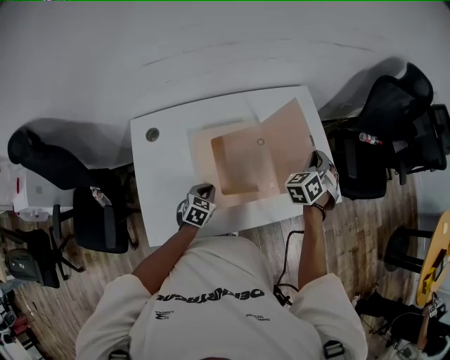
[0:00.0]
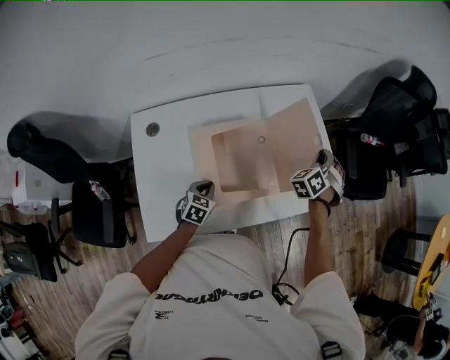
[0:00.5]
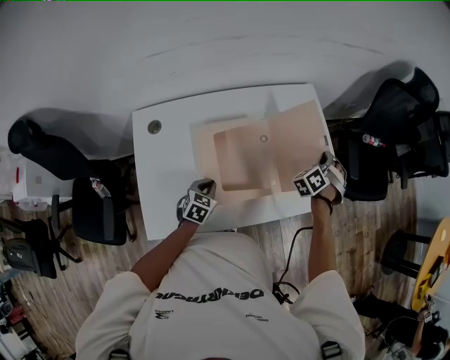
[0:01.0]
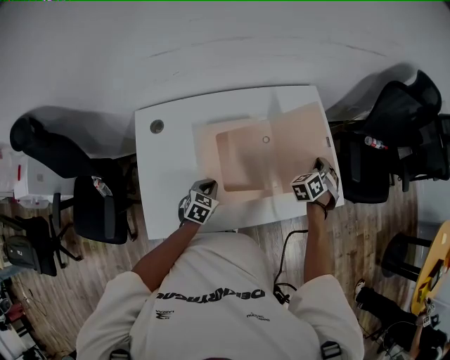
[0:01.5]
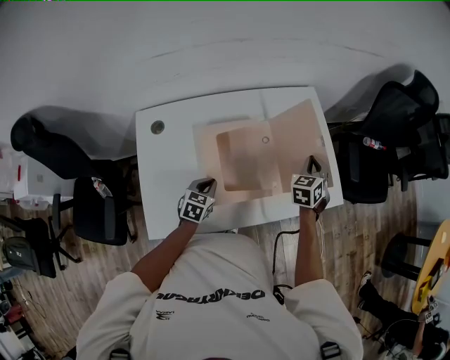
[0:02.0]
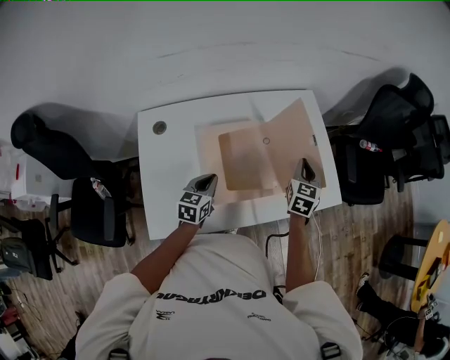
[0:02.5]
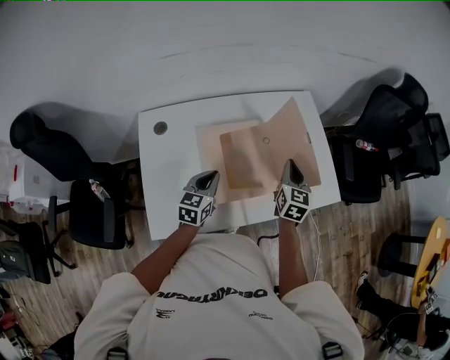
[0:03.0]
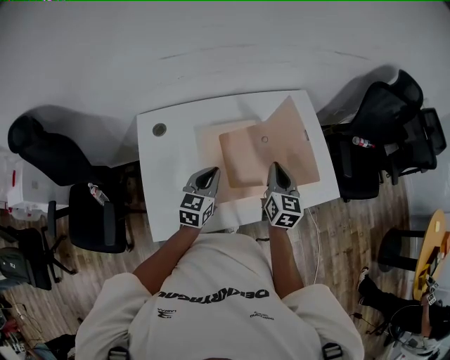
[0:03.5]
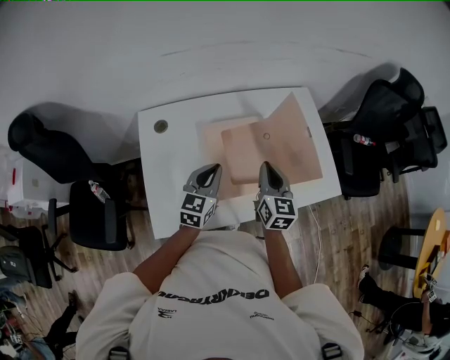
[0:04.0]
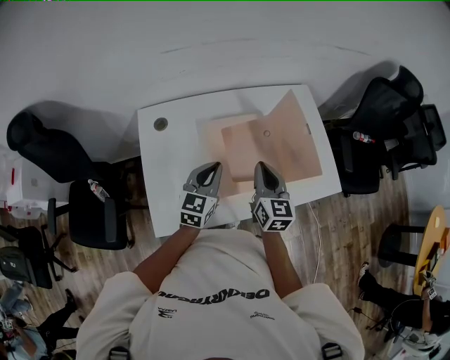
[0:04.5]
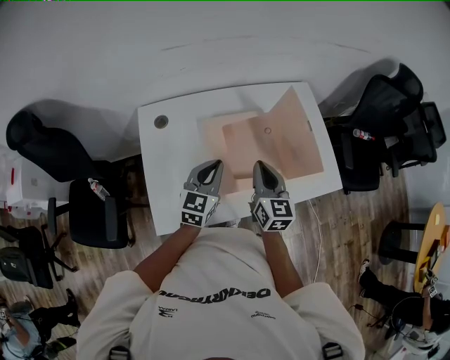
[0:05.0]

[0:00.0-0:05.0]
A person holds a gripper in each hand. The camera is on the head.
0:00.0 to 0:02.5: The right gripper goes approximately 5 cm backward, and rotates around the line of its fingers by about 40 degrees, clockwise from behind, while the left gripper shifts about 10 cm upward, and rotates roughly 30 degrees.
0:02.5 to 0:05.0: The right gripper heads to the left and backward, covering approximately 20 cm, and turns by about 30 degrees. Meanwhile the left gripper shifts roughly 10 cm upward.

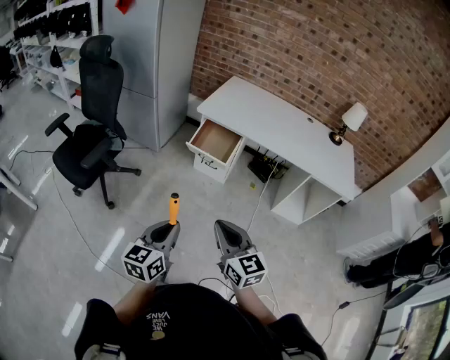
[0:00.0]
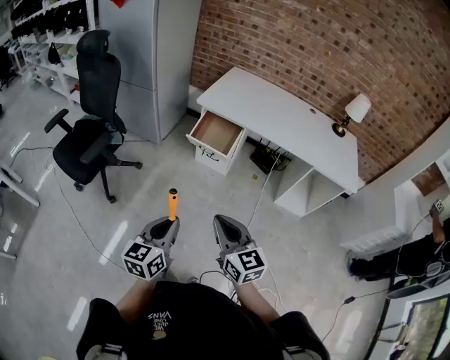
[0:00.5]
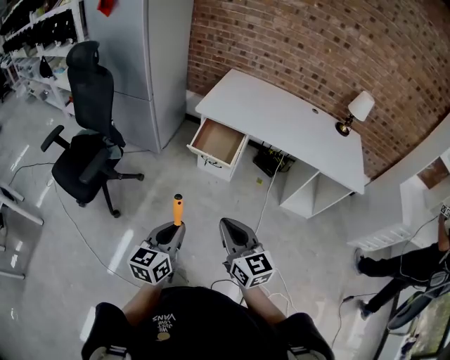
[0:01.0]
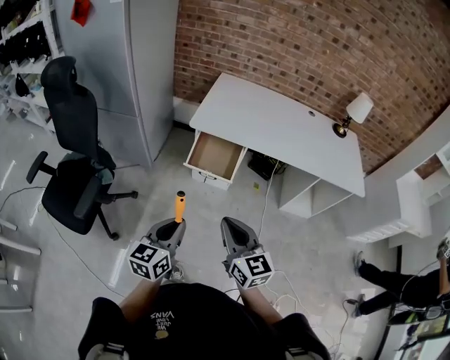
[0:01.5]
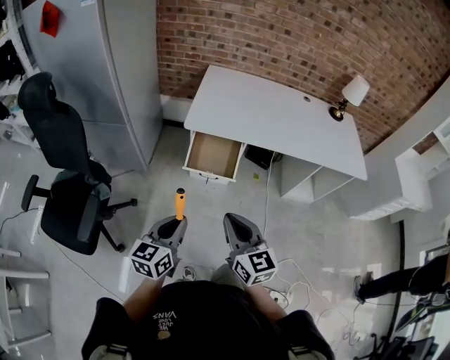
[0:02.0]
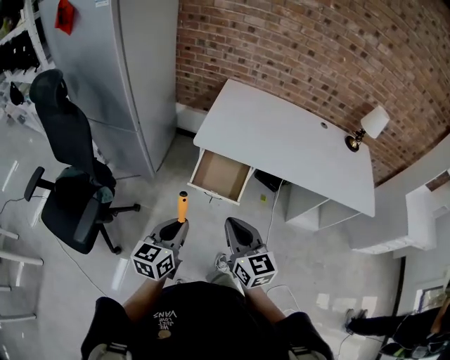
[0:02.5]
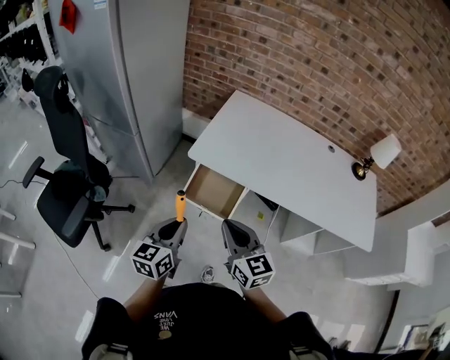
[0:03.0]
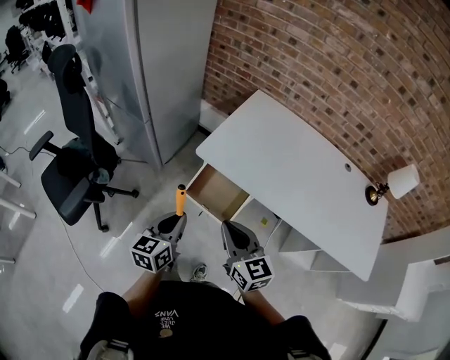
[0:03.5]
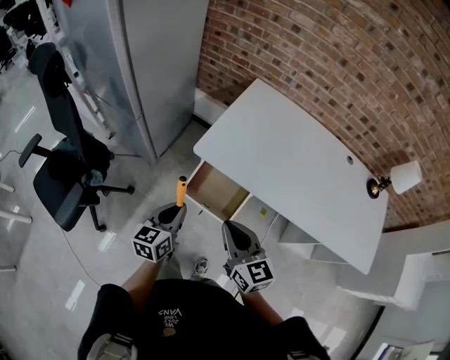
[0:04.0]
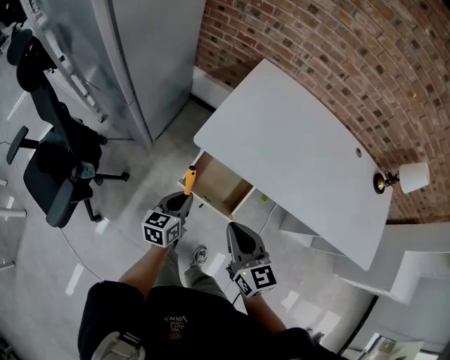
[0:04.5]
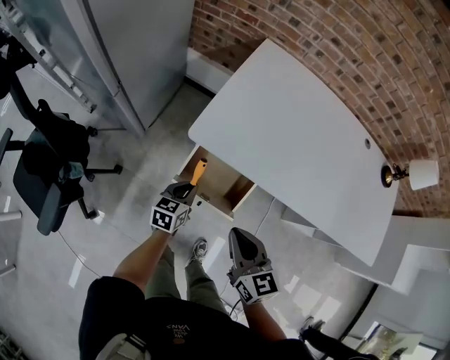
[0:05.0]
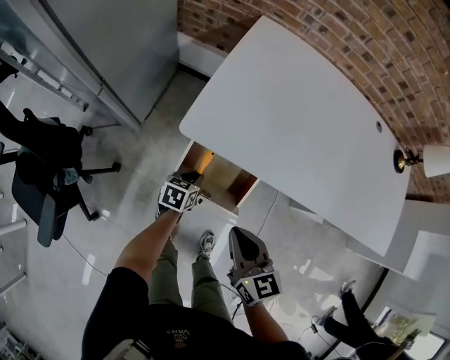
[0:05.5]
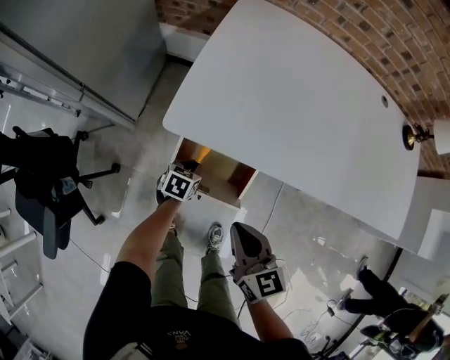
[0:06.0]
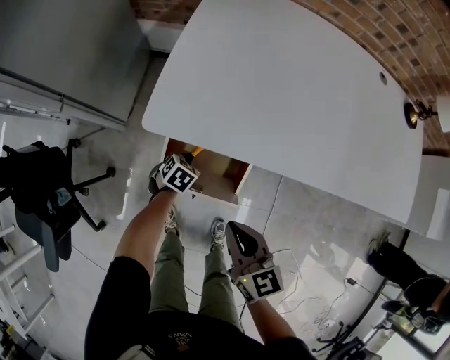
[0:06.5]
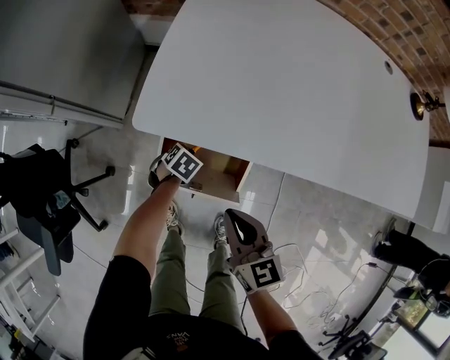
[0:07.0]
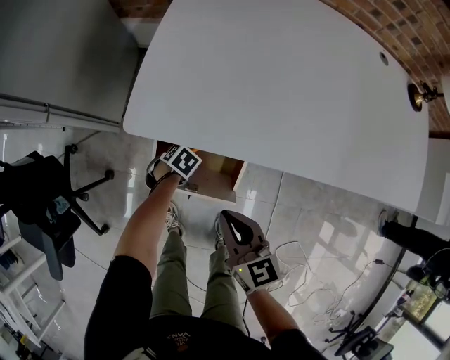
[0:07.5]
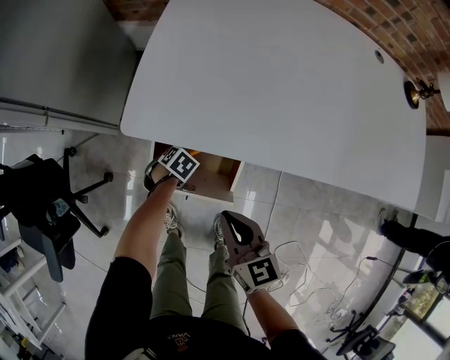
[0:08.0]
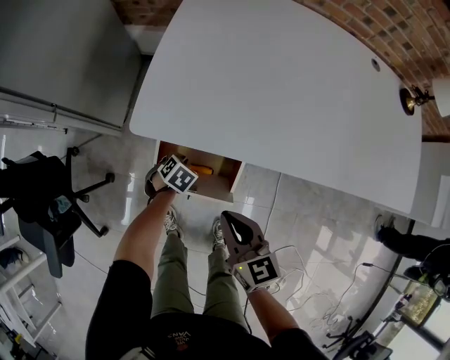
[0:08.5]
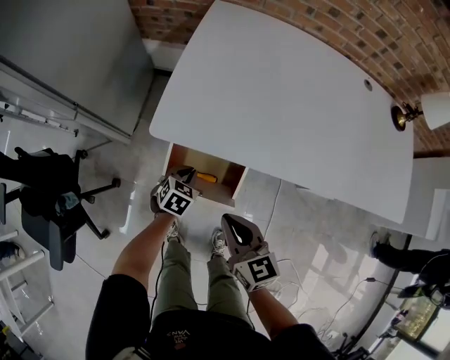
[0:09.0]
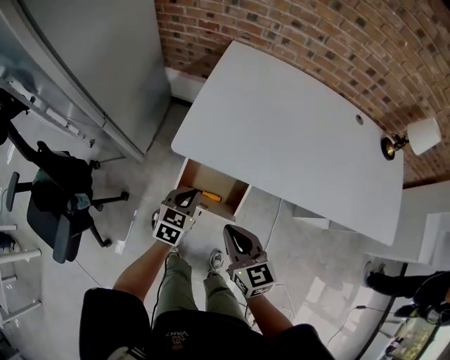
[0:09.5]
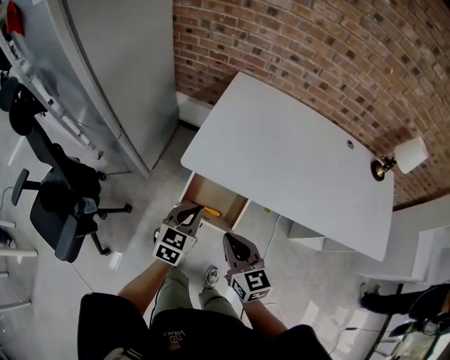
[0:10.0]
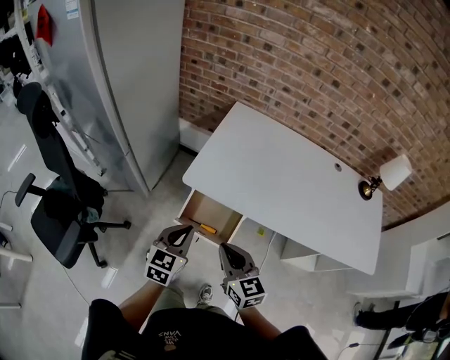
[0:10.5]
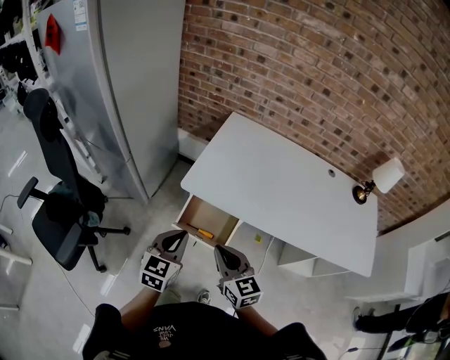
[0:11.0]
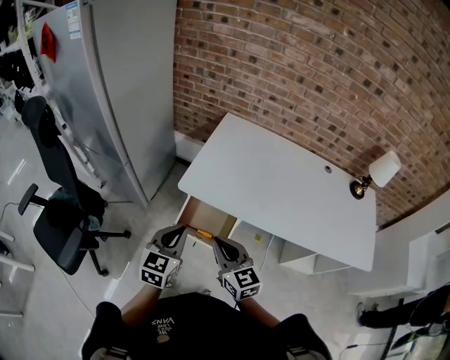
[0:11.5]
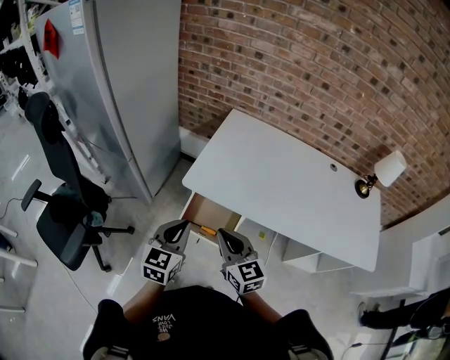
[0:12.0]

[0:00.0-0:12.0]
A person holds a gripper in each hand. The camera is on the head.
0:00.0 to 0:02.0: The grippers both shift forward by about 30 cm.
0:02.0 to 0:04.0: The left gripper heads forward, covering about 25 cm, and turns by roughly 20 degrees. The right gripper heads forward and to the right, covering roughly 25 cm, and changes its angle by roughly 20 degrees.
0:04.0 to 0:06.0: The right gripper travels downward by roughly 20 cm, and turns by roughly 20 degrees; the left gripper heads downward and forward, covering some 40 cm, and angles its fingers downward, by approximately 40 degrees.
0:06.0 to 0:08.0: The grippers both shift downward by roughly 10 cm. The left gripper changes its angle by some 30 degrees.
0:08.0 to 0:10.0: The left gripper is displaced upward by approximately 40 cm, and angles its fingers upward, by some 50 degrees; the right gripper moves upward, approximately 15 cm.
0:10.0 to 0:12.0: The right gripper shifts approximately 10 cm upward. Meanwhile the left gripper is displaced upward and backward by roughly 15 cm.

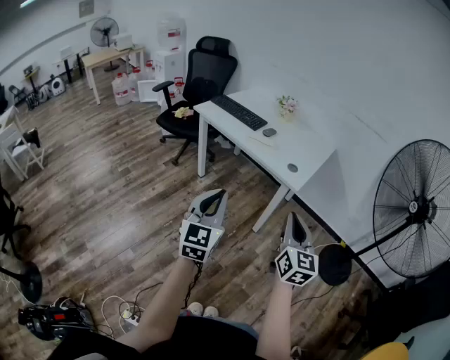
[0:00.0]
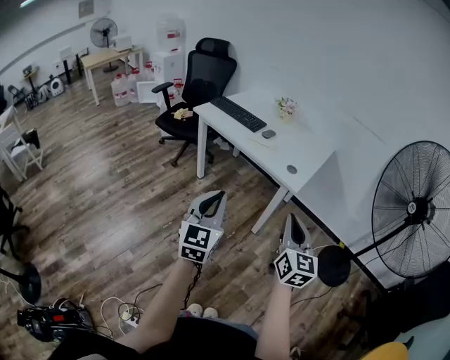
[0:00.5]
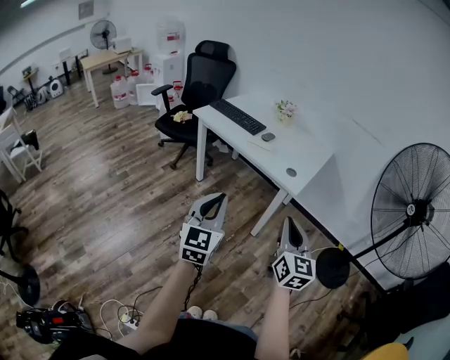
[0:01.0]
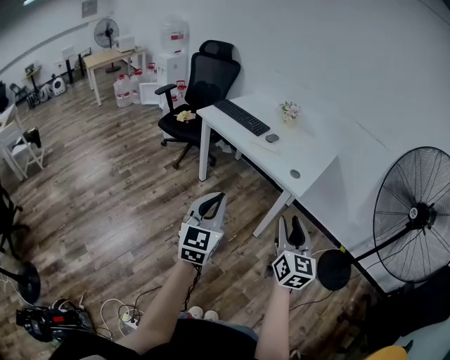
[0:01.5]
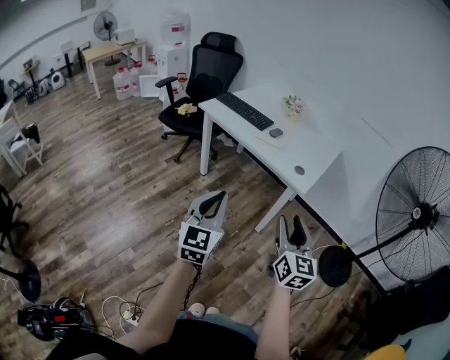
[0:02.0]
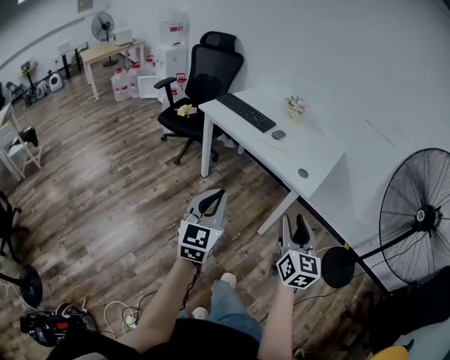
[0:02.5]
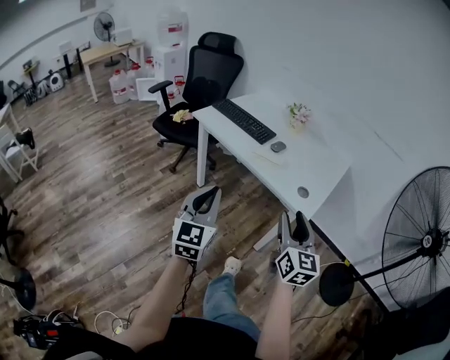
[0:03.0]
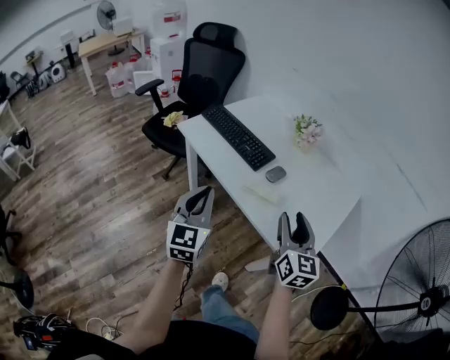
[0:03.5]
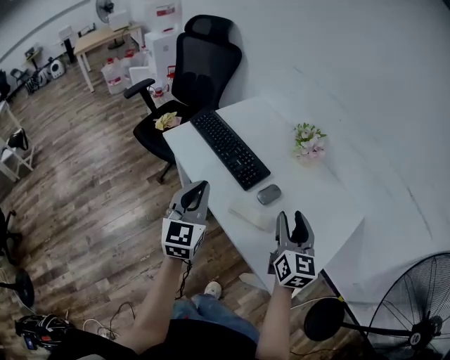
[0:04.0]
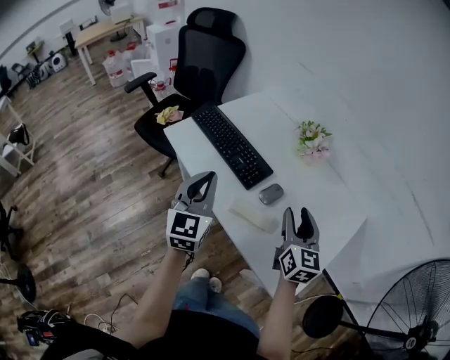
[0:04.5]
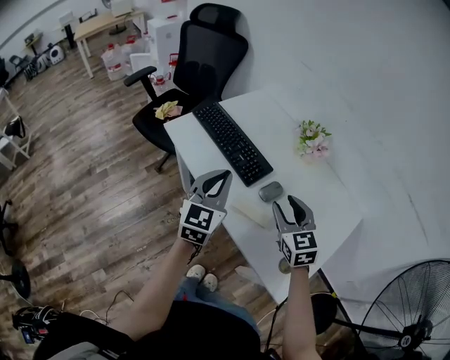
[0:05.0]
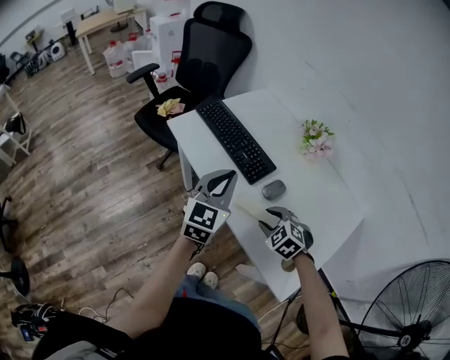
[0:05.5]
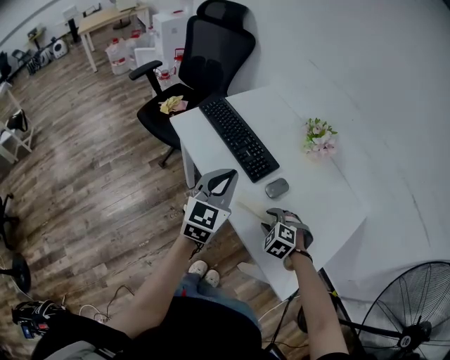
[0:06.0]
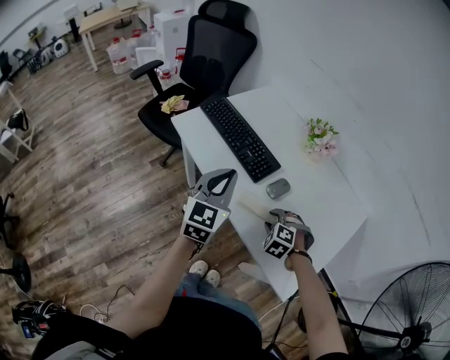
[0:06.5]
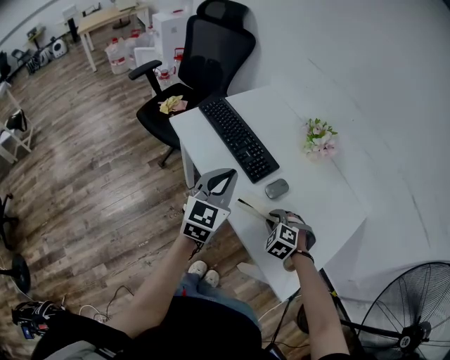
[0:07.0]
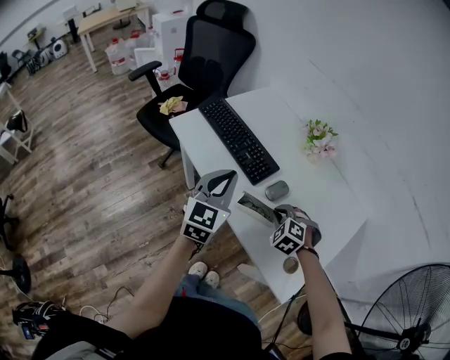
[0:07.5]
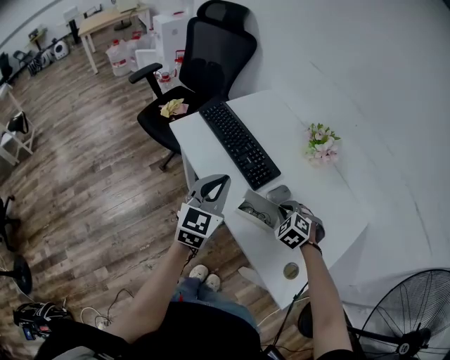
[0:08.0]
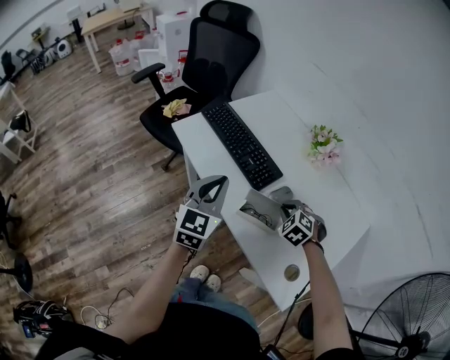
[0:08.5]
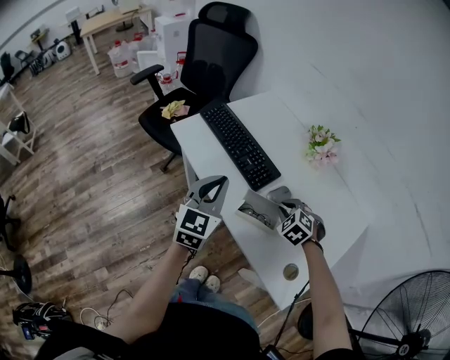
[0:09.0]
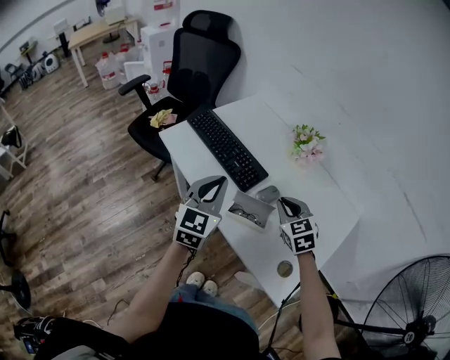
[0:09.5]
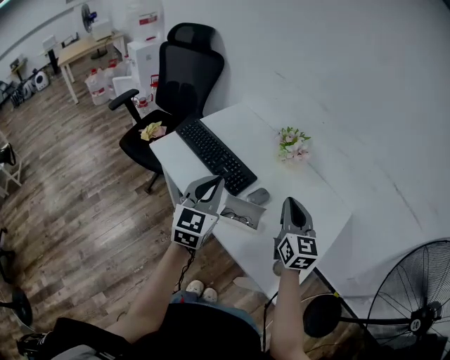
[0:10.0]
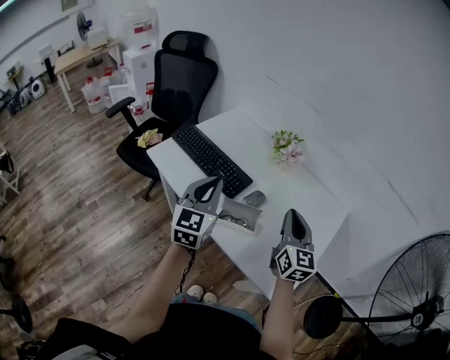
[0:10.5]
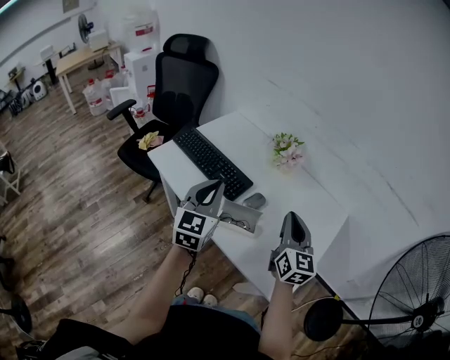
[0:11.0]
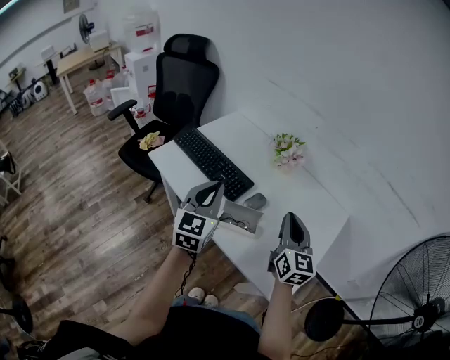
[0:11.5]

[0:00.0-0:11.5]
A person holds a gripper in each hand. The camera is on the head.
0:00.0 to 0:02.0: The right gripper shifts by about 5 cm, and opens its fingers.
0:02.0 to 0:04.0: The two grippers travel together, forward, approximately 60 cm.
0:04.0 to 0:06.0: The right gripper moves downward, about 20 cm, and points its fingers some 60 degrees further downward, while the left gripper shifts by approximately 5 cm.
0:06.0 to 0:07.5: The right gripper moves some 5 cm, and closes its fingers.
0:07.5 to 0:09.5: The right gripper travels upward by roughly 10 cm, and rotates about 40 degrees.
0:09.5 to 0:11.5: The right gripper travels upward, backward and to the right by some 15 cm, and points its fingers roughly 30 degrees further upward.
